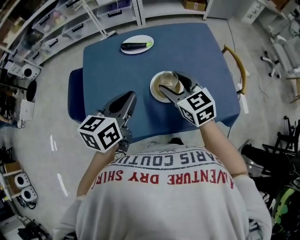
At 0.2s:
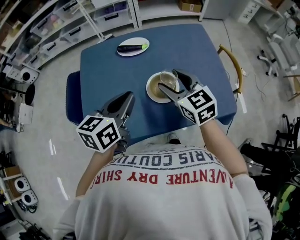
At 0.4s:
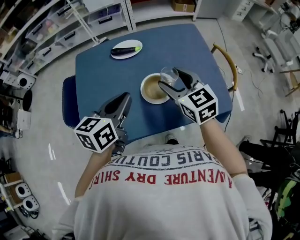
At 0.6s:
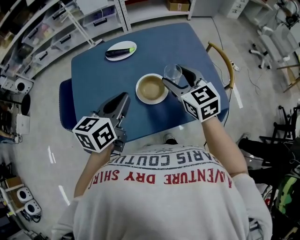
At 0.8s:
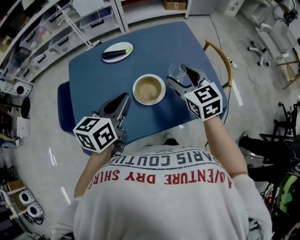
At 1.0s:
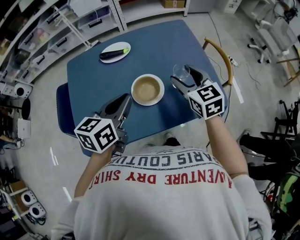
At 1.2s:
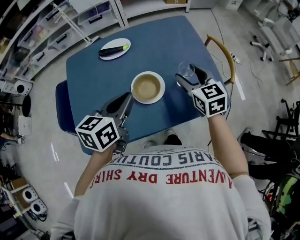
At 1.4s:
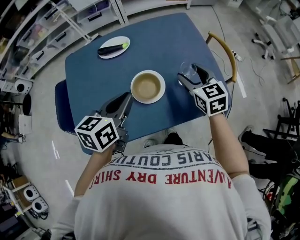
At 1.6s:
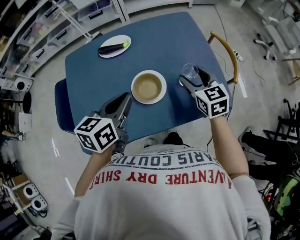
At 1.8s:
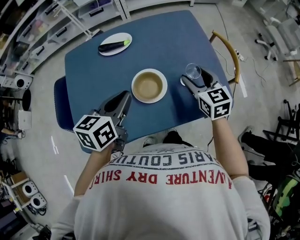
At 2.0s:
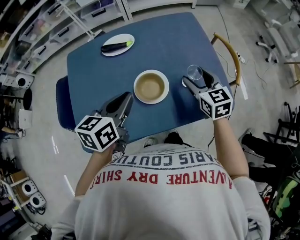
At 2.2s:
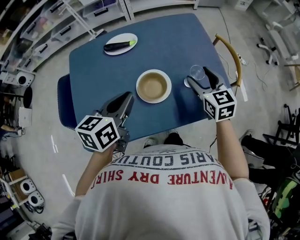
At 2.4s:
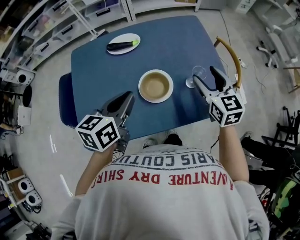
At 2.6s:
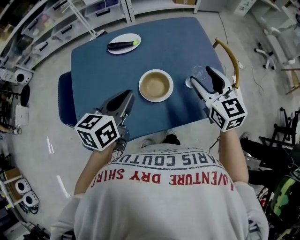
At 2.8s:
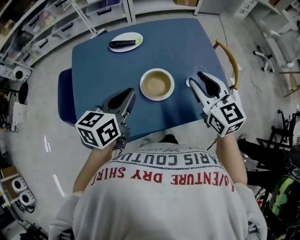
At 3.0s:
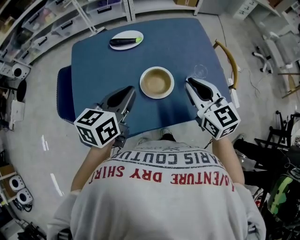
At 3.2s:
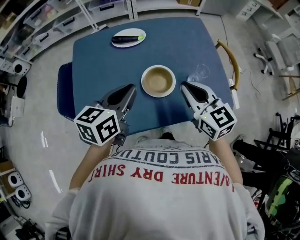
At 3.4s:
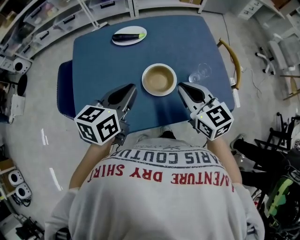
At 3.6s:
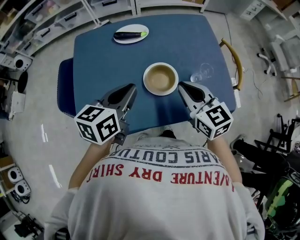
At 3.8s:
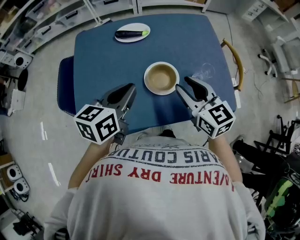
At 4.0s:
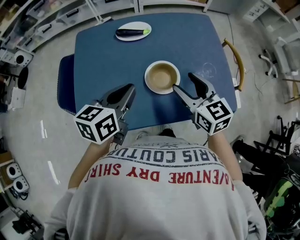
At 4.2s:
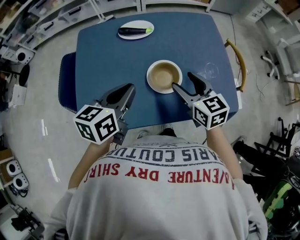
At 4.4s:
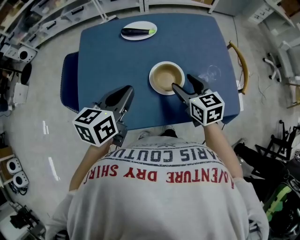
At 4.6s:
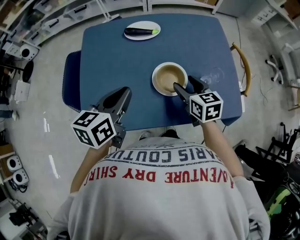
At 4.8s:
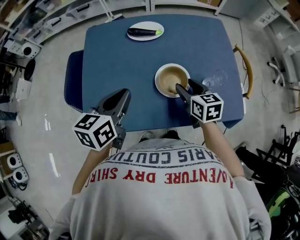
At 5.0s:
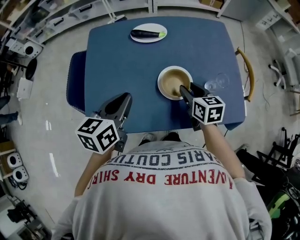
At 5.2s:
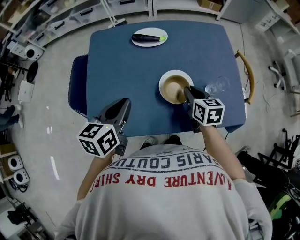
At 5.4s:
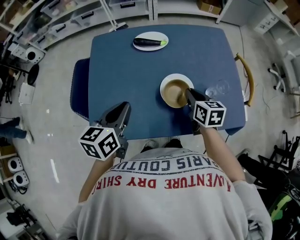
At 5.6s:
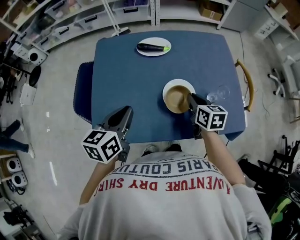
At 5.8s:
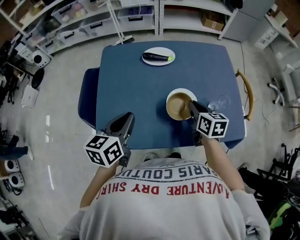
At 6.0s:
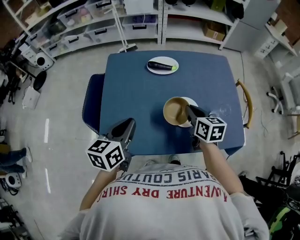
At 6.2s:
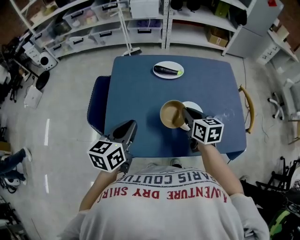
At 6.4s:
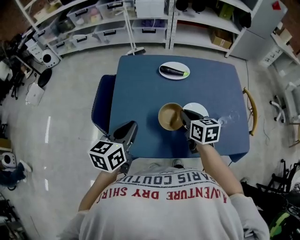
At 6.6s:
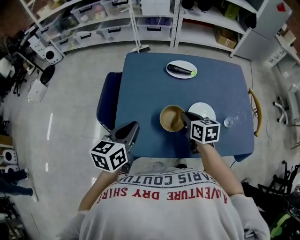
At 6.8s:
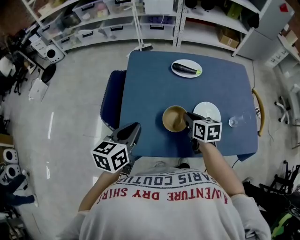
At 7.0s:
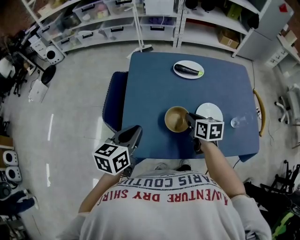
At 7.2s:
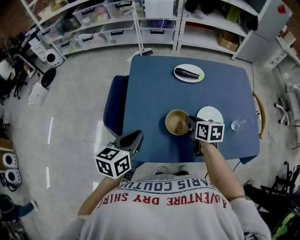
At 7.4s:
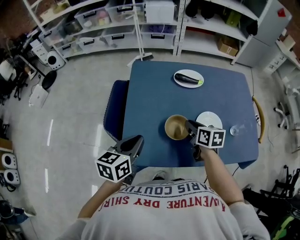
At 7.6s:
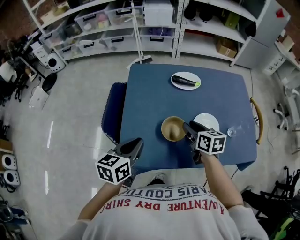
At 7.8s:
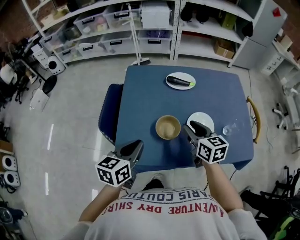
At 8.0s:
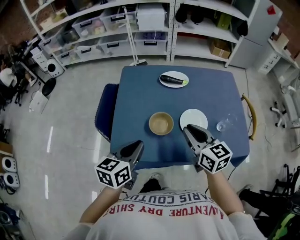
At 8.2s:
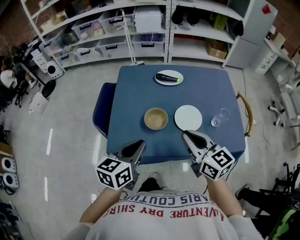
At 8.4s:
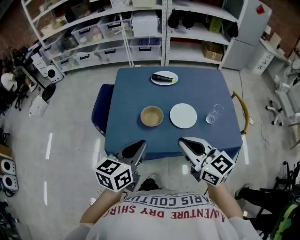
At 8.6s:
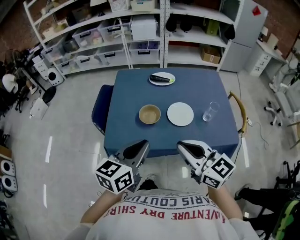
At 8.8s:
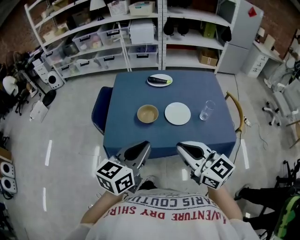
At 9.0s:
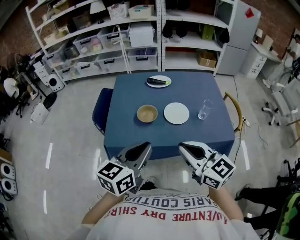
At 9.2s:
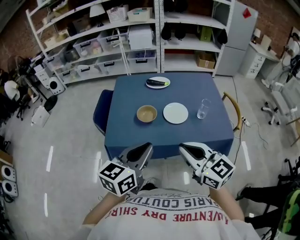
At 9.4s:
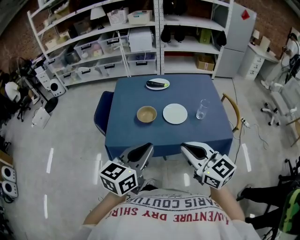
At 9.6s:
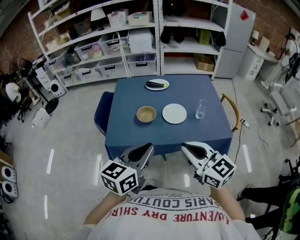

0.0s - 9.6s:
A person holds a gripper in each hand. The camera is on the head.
0.0s - 1.6s: The right gripper travels to the right by approximately 15 cm, while the left gripper shifts about 5 cm to the right.
1.6s - 3.2s: The right gripper travels to the left, backward and upward by about 15 cm, and closes.
3.2s - 4.8s: The right gripper moves downward, some 15 cm, turns by approximately 20 degrees, and opens its fingers; the left gripper goes approximately 5 cm to the left.
4.8s - 6.4s: The two grippers go roughly 10 cm to the left. The right gripper closes.
6.4s - 8.0s: The right gripper is displaced upward and backward by approximately 10 cm. Meanwhile the left gripper goes about 5 cm backward.
8.0s - 9.6s: The right gripper is displaced backward and upward by approximately 25 cm. Meanwhile the left gripper moves backward, to the right and upward, about 20 cm.

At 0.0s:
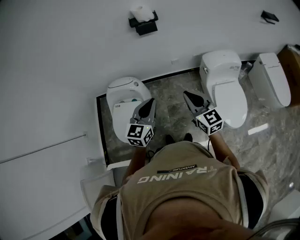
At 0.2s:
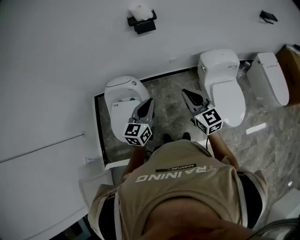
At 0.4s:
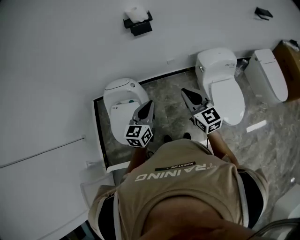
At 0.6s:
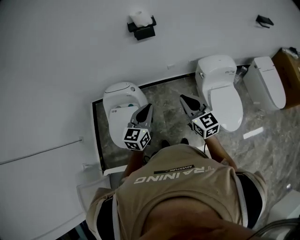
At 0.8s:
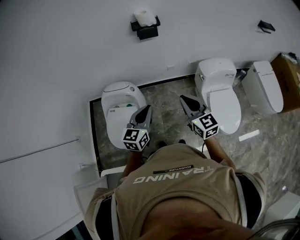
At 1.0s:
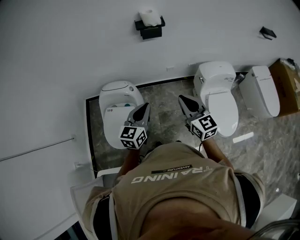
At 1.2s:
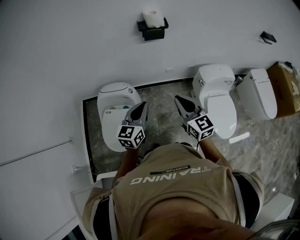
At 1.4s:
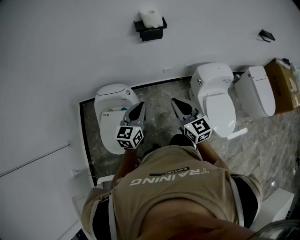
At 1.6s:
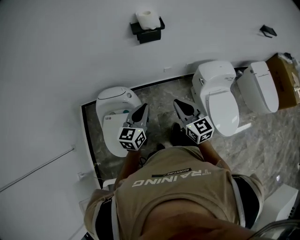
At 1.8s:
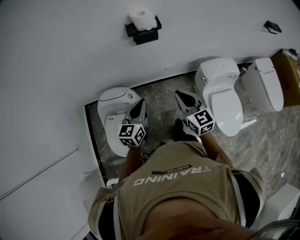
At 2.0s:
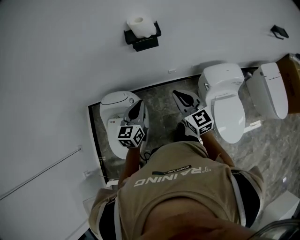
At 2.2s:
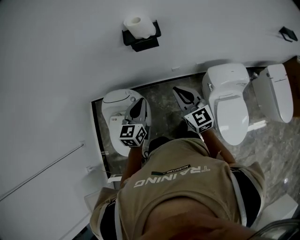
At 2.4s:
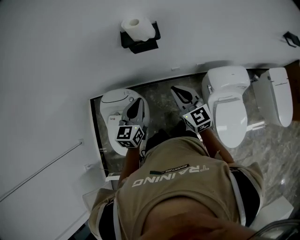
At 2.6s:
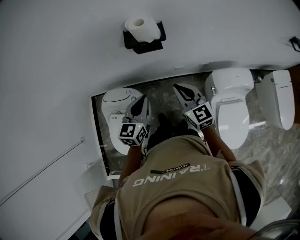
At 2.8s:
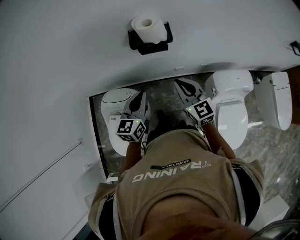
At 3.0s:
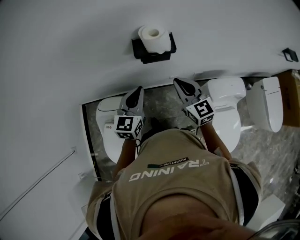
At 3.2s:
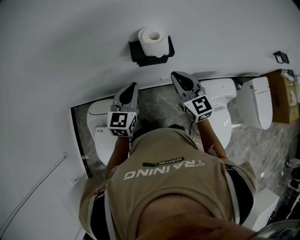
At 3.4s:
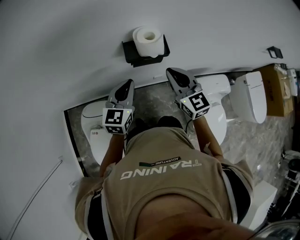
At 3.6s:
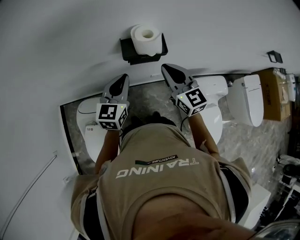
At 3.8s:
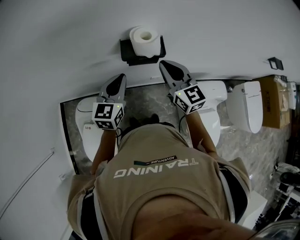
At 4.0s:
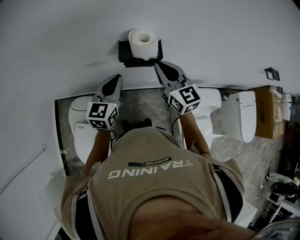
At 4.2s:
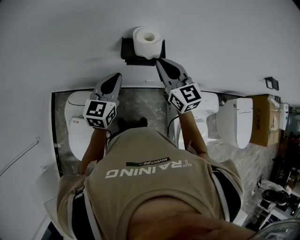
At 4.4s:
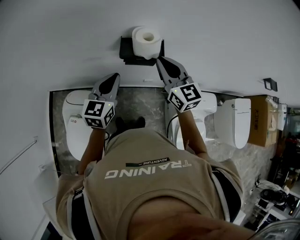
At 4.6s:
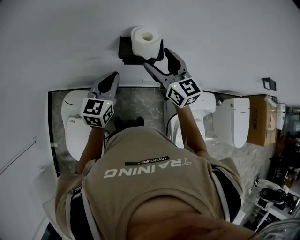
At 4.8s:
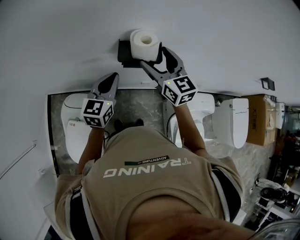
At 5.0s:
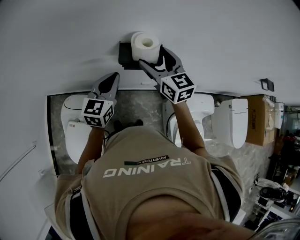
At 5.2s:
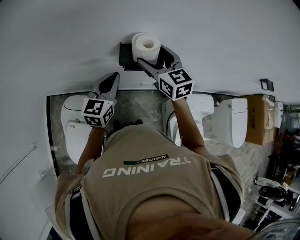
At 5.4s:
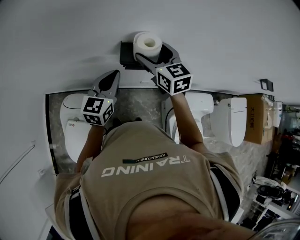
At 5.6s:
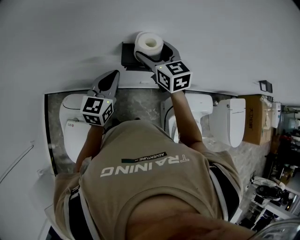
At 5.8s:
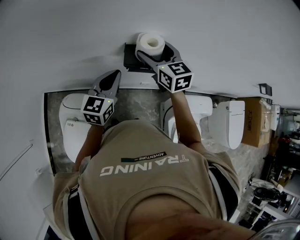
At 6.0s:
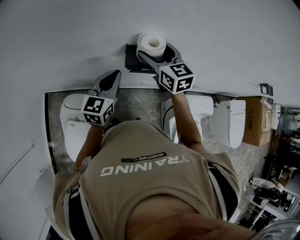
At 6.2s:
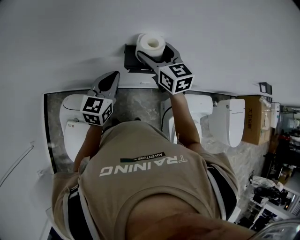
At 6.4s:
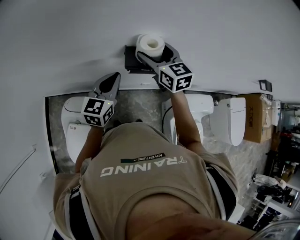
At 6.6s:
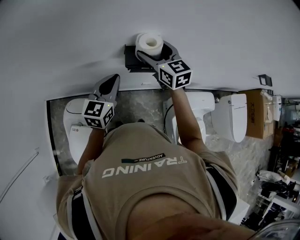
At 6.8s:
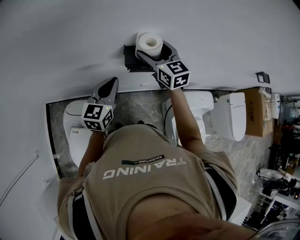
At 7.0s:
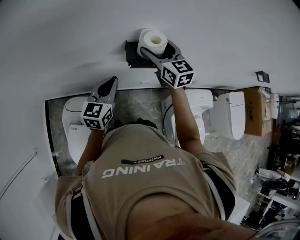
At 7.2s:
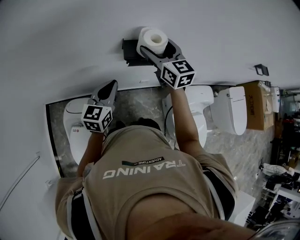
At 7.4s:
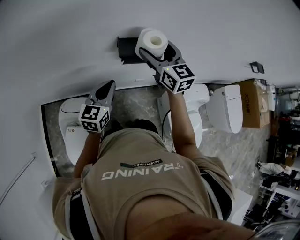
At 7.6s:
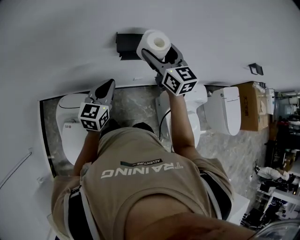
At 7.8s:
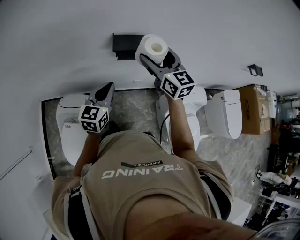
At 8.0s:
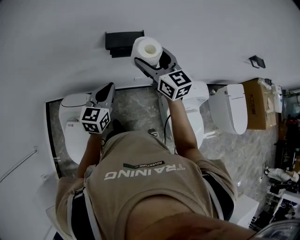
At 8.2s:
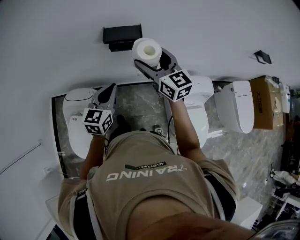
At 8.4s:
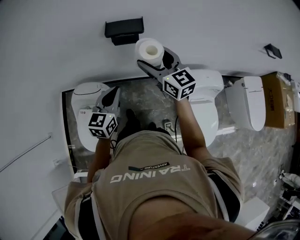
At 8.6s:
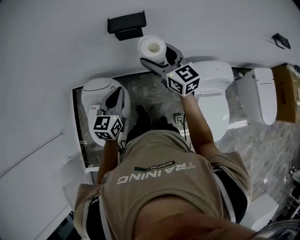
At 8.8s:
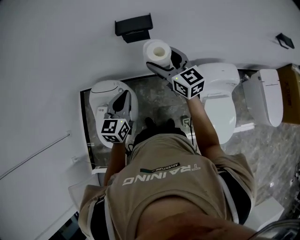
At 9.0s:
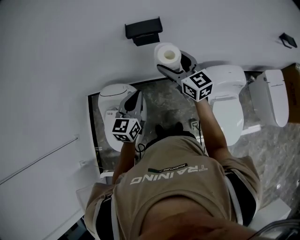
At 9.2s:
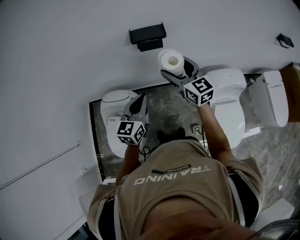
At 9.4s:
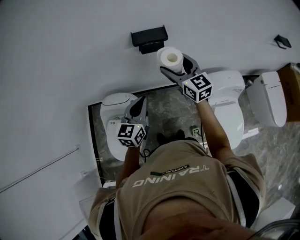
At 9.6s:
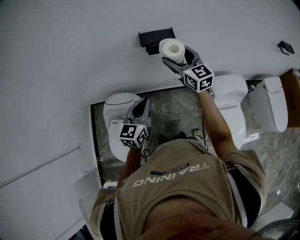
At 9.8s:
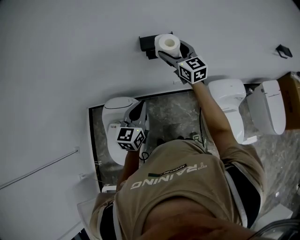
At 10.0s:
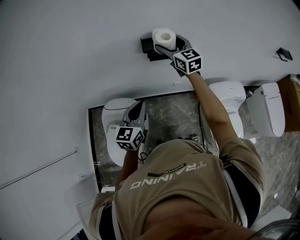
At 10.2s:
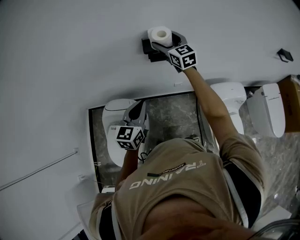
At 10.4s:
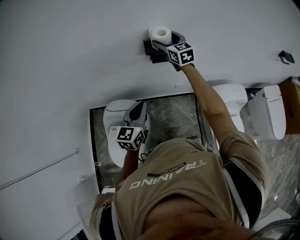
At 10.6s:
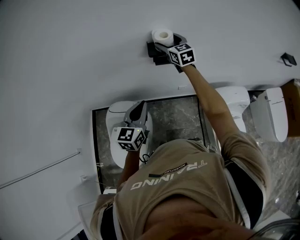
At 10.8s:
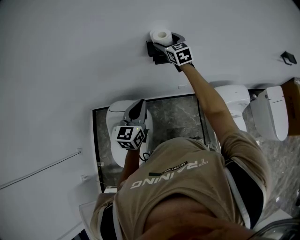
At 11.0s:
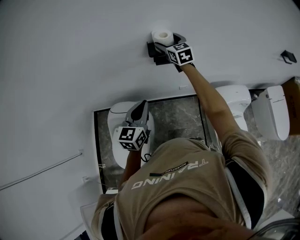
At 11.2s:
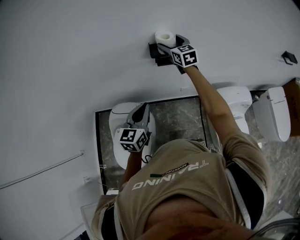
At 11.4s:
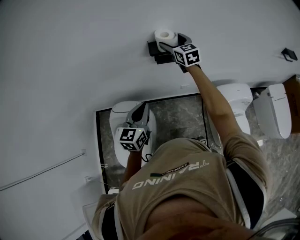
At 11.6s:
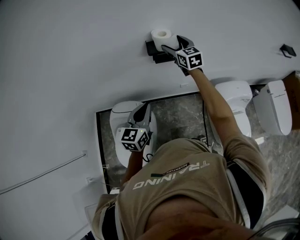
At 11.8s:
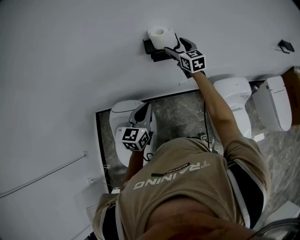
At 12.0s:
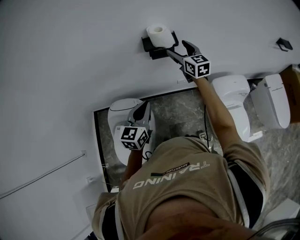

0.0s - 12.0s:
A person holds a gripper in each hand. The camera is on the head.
0.0s - 1.6s: The grippers both shift forward and to the left by about 15 cm.
1.6s - 3.0s: Both grippers move forward, about 25 cm.
3.0s - 4.4s: The left gripper travels forward by about 5 cm; the right gripper goes roughly 10 cm forward and upward.
4.4s - 6.0s: The left gripper changes place by some 5 cm; the right gripper goes about 10 cm forward and to the left, and opens its fingers.
6.0s - 7.6s: Both grippers travel together backward, approximately 10 cm.
7.6s - 9.0s: The grippers both shift backward by roughly 15 cm.
9.0s - 10.4s: The right gripper shifts approximately 20 cm forward, while the left gripper moves to the left, approximately 5 cm.
10.4s - 12.0s: The right gripper shifts some 10 cm backward and to the right.

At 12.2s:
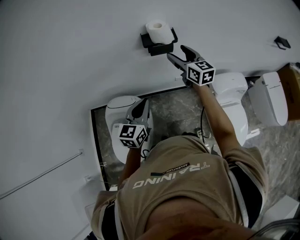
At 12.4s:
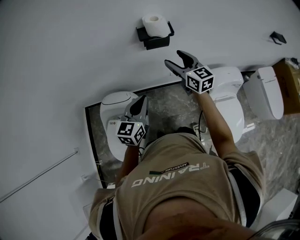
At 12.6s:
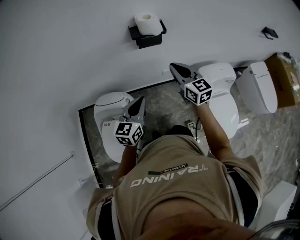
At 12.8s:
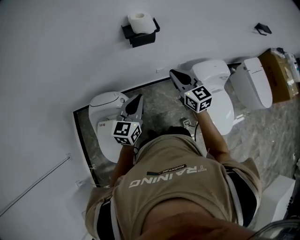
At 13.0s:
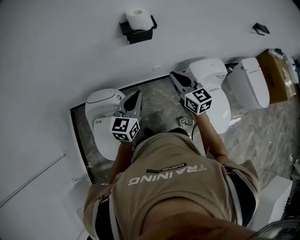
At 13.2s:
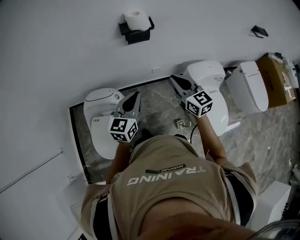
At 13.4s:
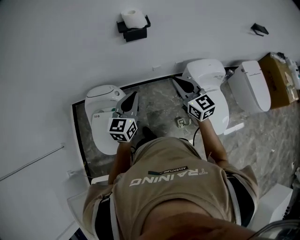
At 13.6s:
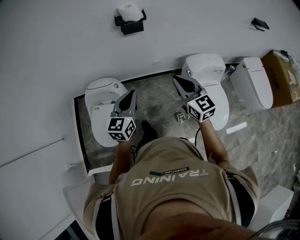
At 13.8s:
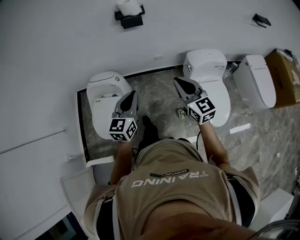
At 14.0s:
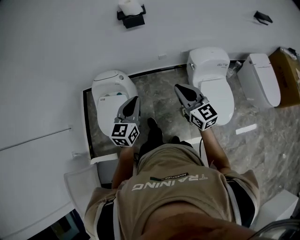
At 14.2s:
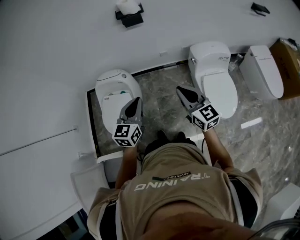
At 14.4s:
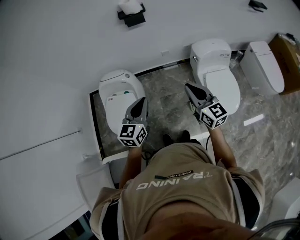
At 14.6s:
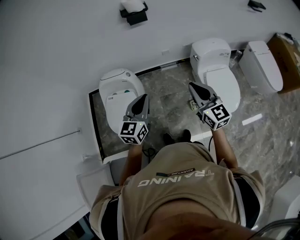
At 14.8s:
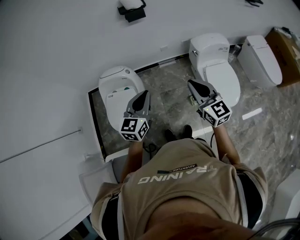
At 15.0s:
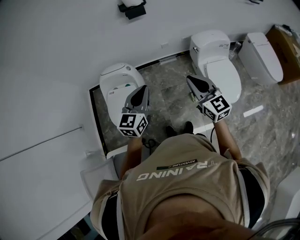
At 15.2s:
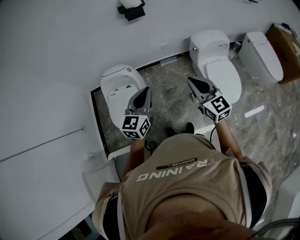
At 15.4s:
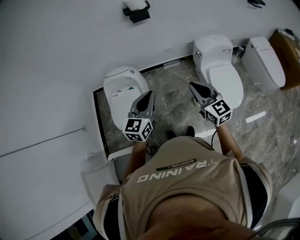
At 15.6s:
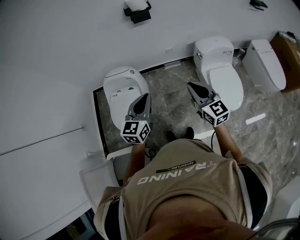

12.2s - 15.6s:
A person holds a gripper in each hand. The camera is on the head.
12.2s - 13.8s: The right gripper shifts roughly 35 cm backward, and closes, while the left gripper moves backward and to the right, about 25 cm.
13.8s - 15.6s: The grippers both shift backward by roughly 10 cm.
